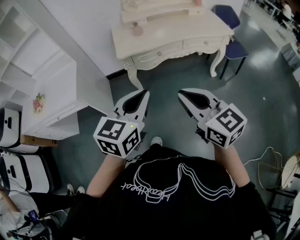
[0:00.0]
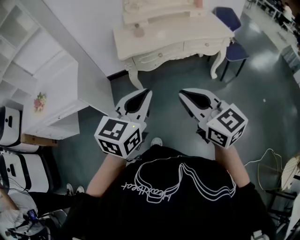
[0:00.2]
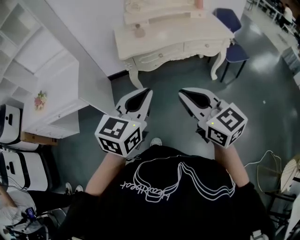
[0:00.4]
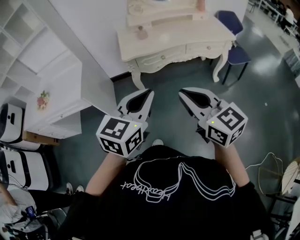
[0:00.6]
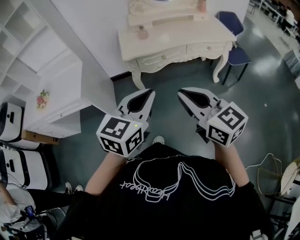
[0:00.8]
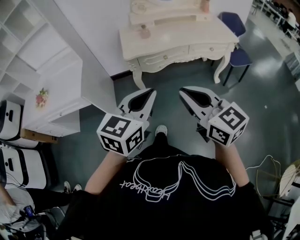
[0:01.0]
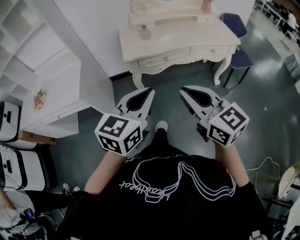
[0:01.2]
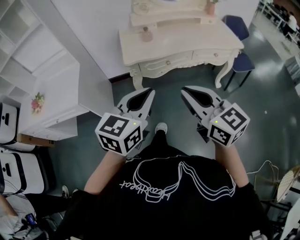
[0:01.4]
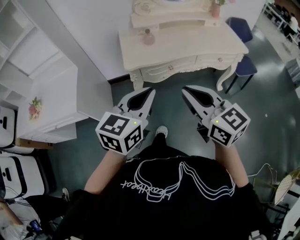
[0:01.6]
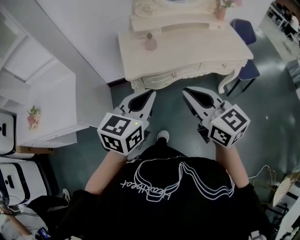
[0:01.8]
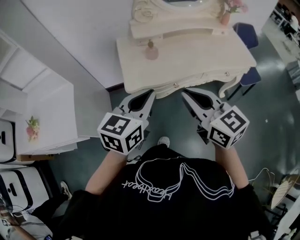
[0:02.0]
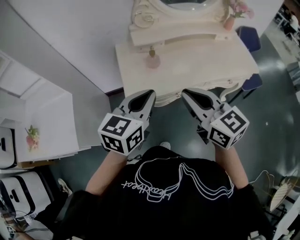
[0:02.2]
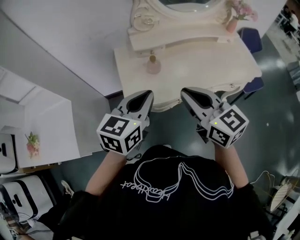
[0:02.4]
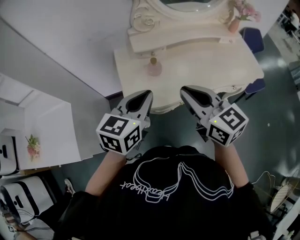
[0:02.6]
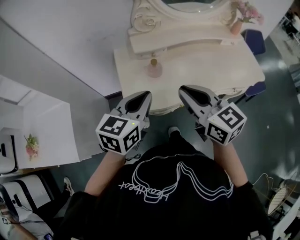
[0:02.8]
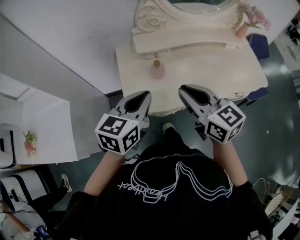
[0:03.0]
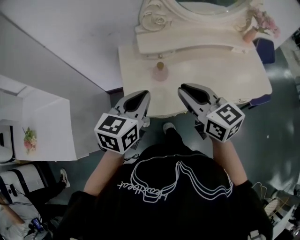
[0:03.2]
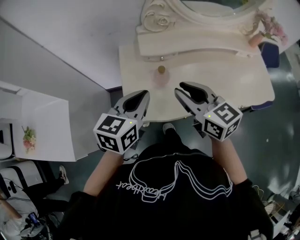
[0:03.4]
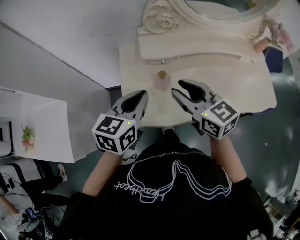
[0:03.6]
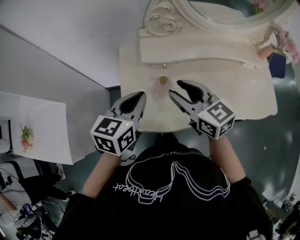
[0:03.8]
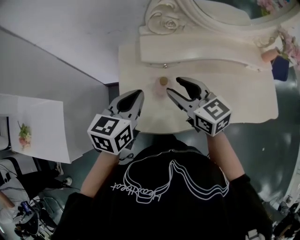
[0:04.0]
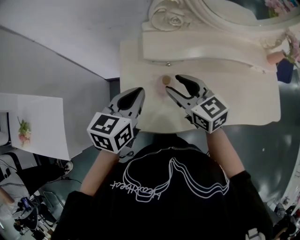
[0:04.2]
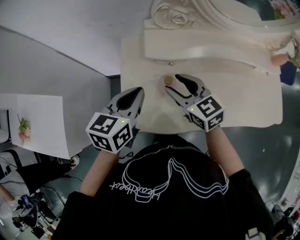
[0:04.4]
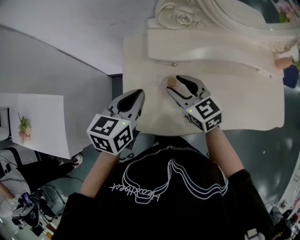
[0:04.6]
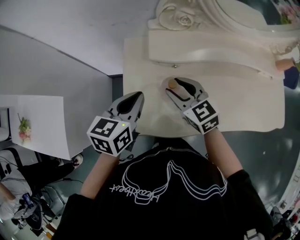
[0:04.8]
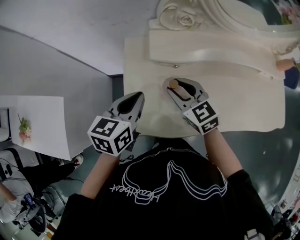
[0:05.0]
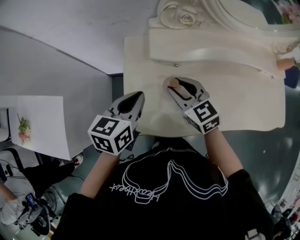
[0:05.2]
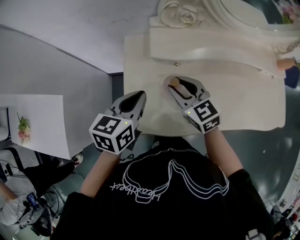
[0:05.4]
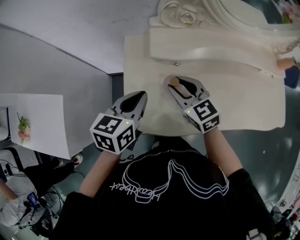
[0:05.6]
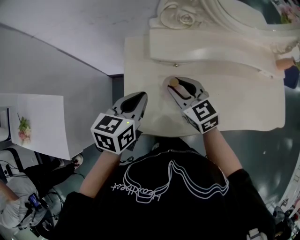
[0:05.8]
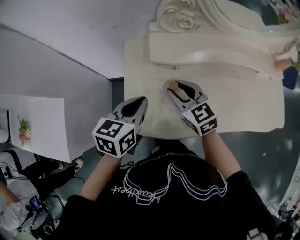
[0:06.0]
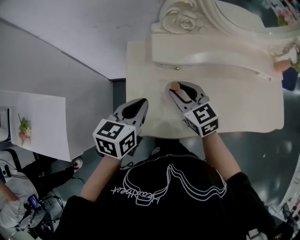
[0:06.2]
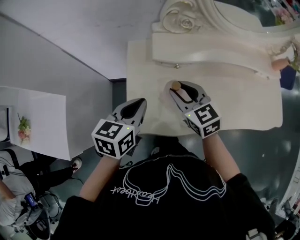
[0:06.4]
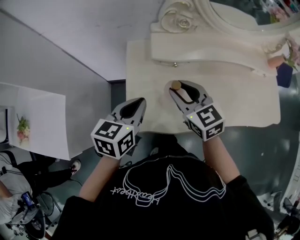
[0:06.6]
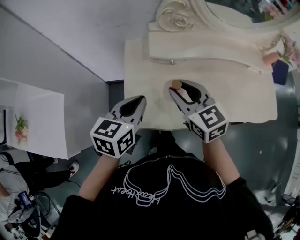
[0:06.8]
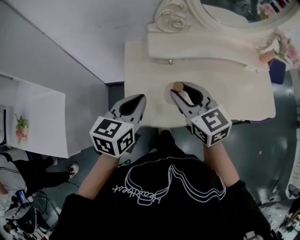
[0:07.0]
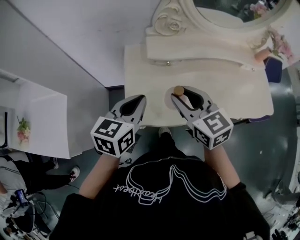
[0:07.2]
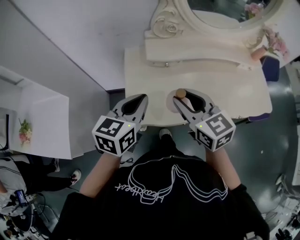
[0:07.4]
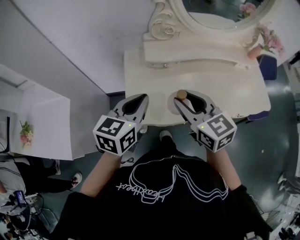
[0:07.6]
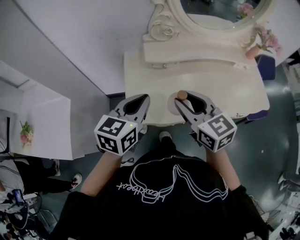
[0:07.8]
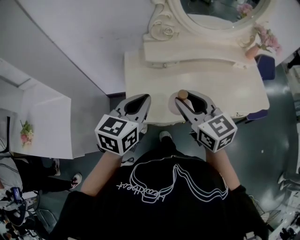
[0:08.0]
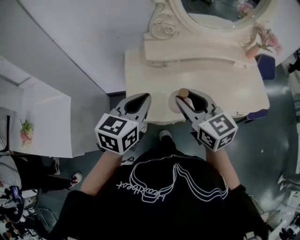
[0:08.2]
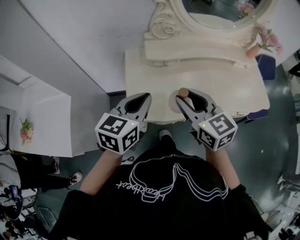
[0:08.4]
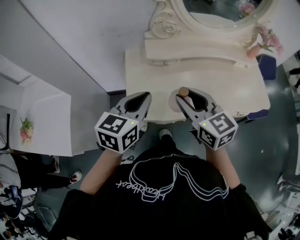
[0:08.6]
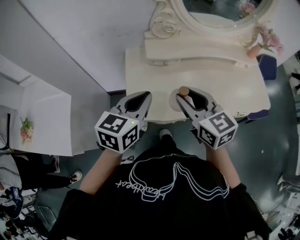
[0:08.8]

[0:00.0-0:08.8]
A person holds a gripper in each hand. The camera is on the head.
0:00.0 to 0:01.4: The two grippers go about 10 cm forward.
0:01.4 to 0:03.0: Both grippers are carried forward, some 40 cm.
0:03.0 to 0:04.4: Both grippers travel together forward and downward, some 20 cm. The right gripper opens its fingers.
0:04.4 to 0:05.8: There are only small adjustments of the grippers.
0:05.8 to 0:07.4: The right gripper moves upward and backward, some 20 cm. Meanwhile the left gripper heads upward and backward, covering some 10 cm.
0:07.4 to 0:08.8: The grippers make only small movements.

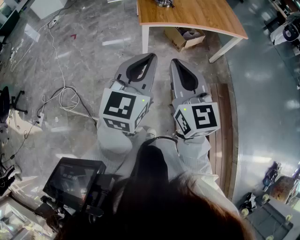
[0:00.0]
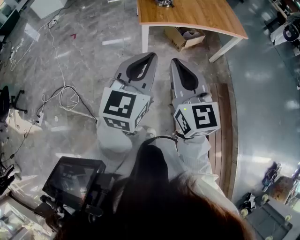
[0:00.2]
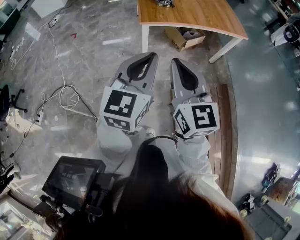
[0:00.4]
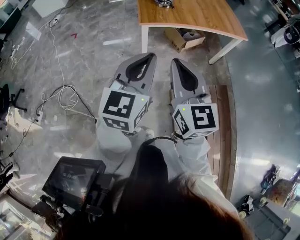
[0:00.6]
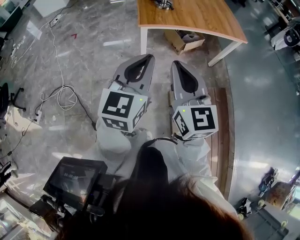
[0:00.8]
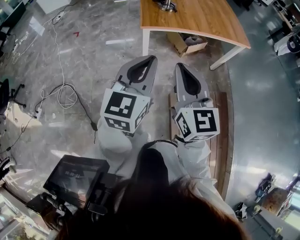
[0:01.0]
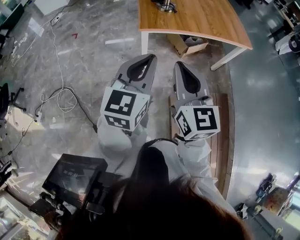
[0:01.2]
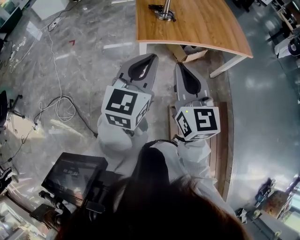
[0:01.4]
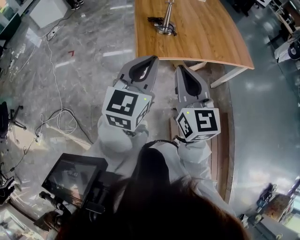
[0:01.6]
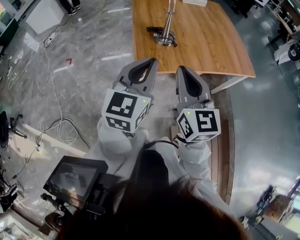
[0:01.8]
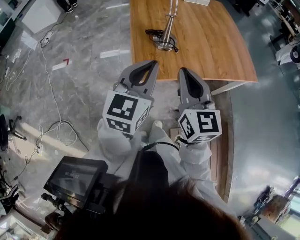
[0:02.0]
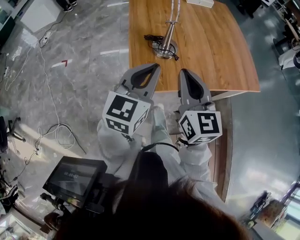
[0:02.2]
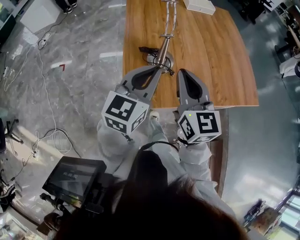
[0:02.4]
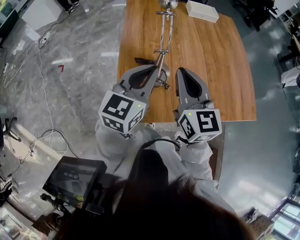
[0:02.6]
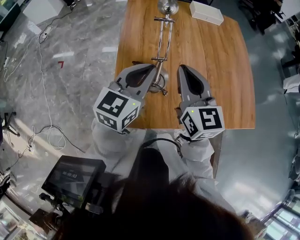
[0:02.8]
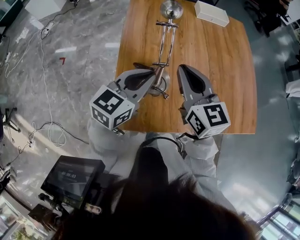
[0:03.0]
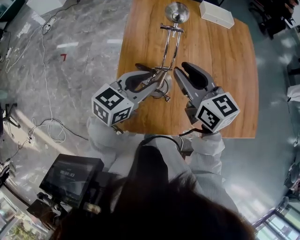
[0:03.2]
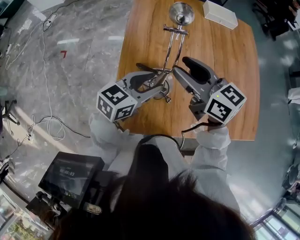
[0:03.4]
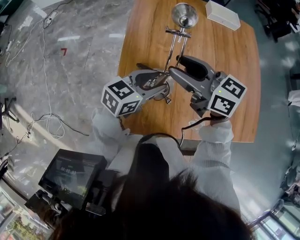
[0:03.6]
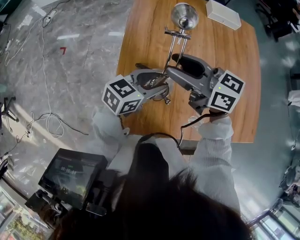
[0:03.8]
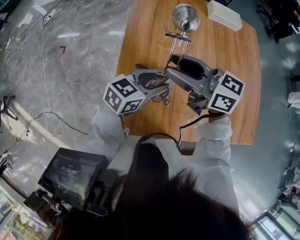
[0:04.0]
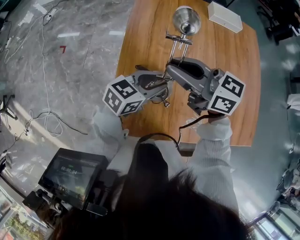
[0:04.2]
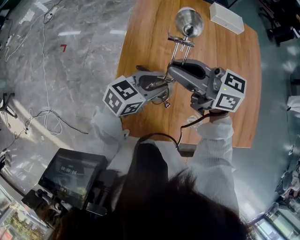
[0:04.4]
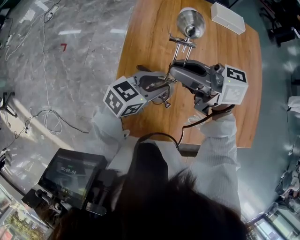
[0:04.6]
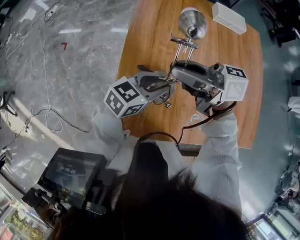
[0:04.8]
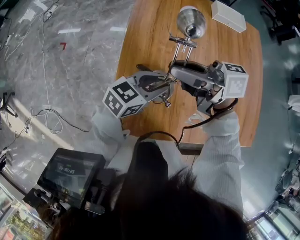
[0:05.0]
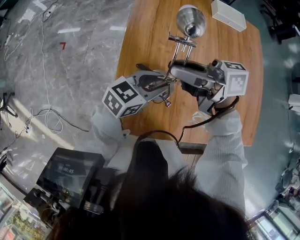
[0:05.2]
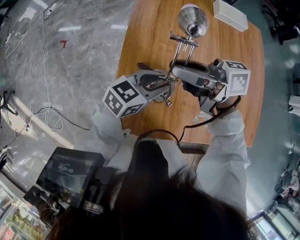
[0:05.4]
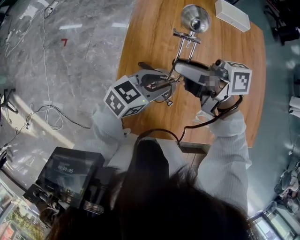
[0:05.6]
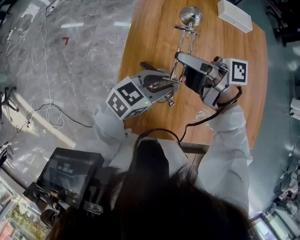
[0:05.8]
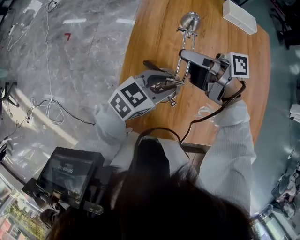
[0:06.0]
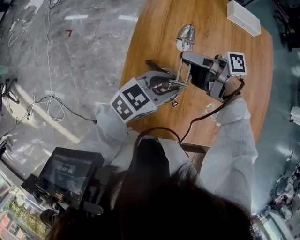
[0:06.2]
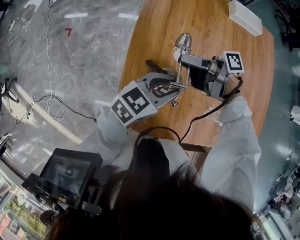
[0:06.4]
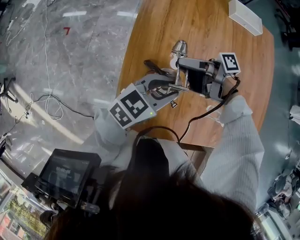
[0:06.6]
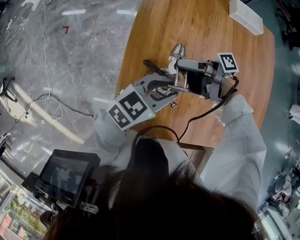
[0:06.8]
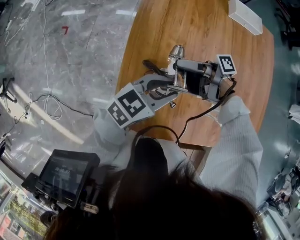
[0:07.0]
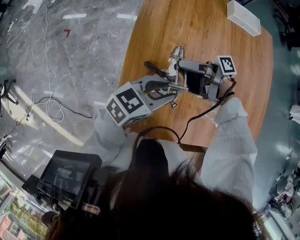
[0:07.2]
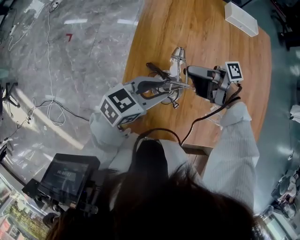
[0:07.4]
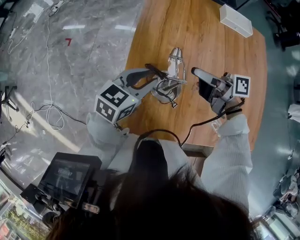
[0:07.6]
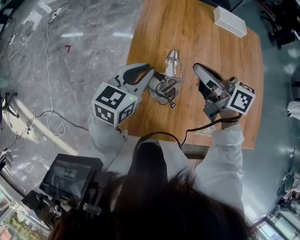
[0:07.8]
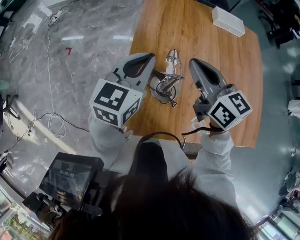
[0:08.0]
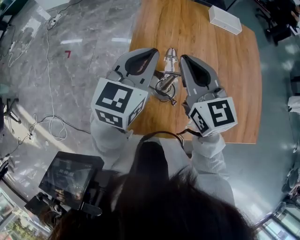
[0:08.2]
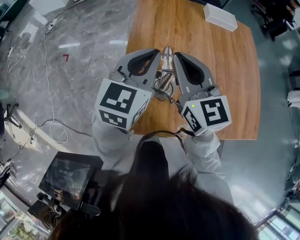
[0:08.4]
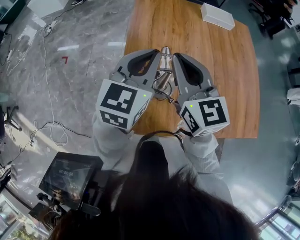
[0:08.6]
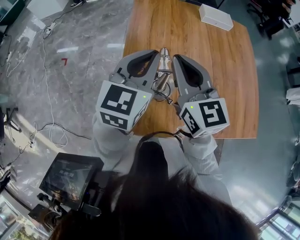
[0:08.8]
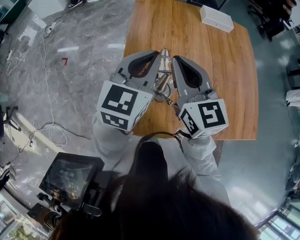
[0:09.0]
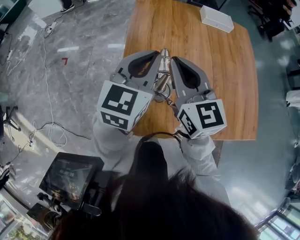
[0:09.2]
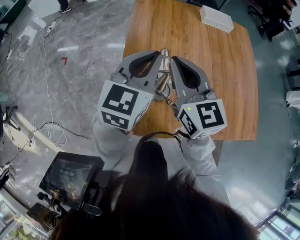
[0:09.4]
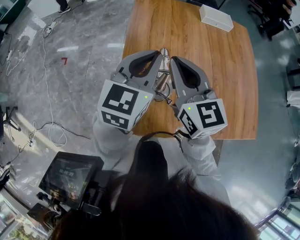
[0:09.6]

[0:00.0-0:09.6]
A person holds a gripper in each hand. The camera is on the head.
0:00.0 to 0:01.6: Both grippers travel together forward, about 30 cm.
0:01.6 to 0:03.2: The two grippers travel together, forward, roughly 60 cm. The right gripper swivels approximately 30 degrees, and opens. The left gripper turns by approximately 20 degrees, and opens its fingers.
0:03.2 to 0:04.8: The left gripper is displaced downward by approximately 5 cm. The right gripper moves about 5 cm, and rotates roughly 50 degrees.
0:04.8 to 0:06.4: The right gripper moves downward, about 15 cm, and twists roughly 40 degrees clockwise, seen from behind.
0:06.4 to 0:08.0: Both grippers move upward, approximately 15 cm. The right gripper rotates around the line of its fingers by roughly 70 degrees, counterclockwise from behind, while the left gripper rotates approximately 30 degrees, and closes.
0:08.0 to 0:09.6: The left gripper changes place by some 5 cm. Meanwhile the right gripper changes place by about 5 cm.

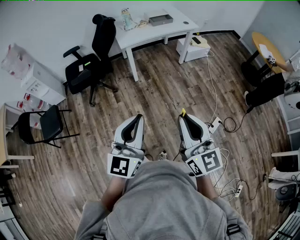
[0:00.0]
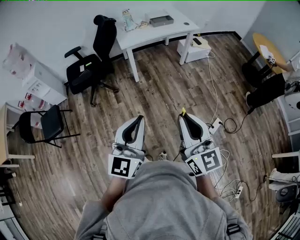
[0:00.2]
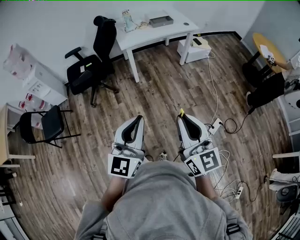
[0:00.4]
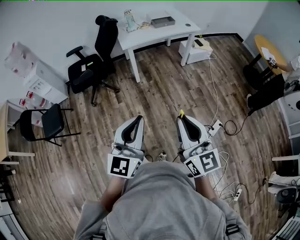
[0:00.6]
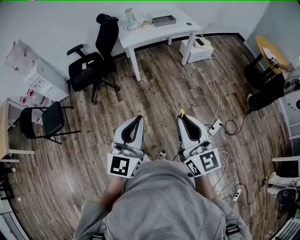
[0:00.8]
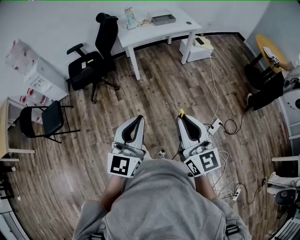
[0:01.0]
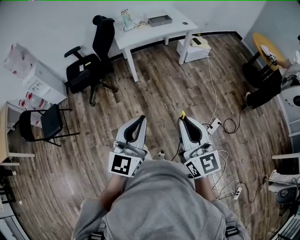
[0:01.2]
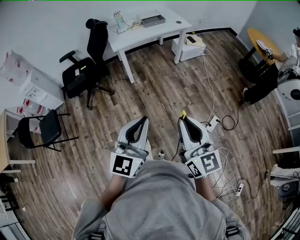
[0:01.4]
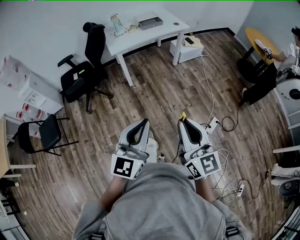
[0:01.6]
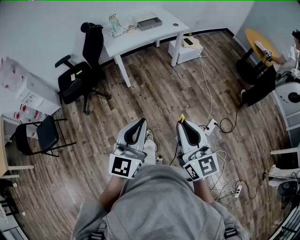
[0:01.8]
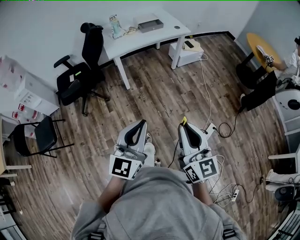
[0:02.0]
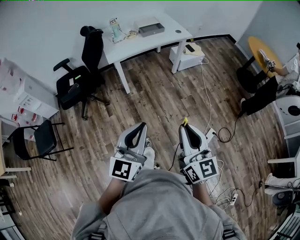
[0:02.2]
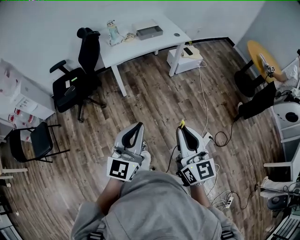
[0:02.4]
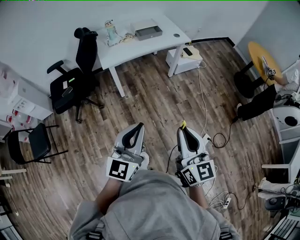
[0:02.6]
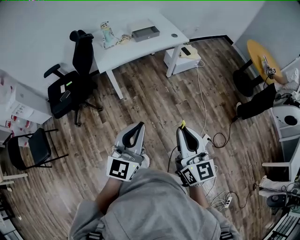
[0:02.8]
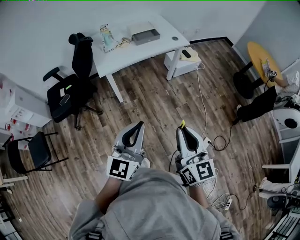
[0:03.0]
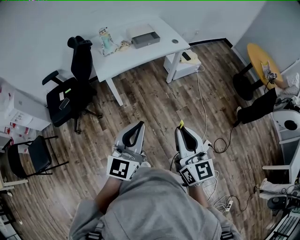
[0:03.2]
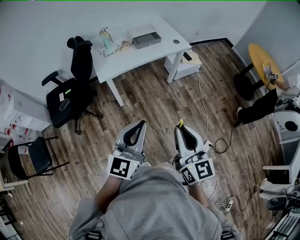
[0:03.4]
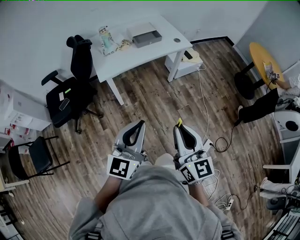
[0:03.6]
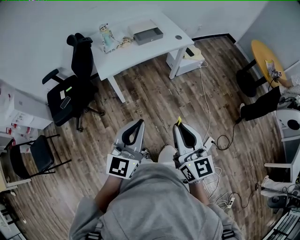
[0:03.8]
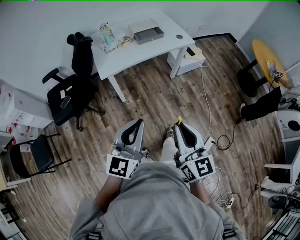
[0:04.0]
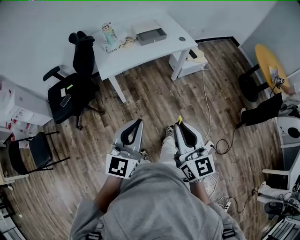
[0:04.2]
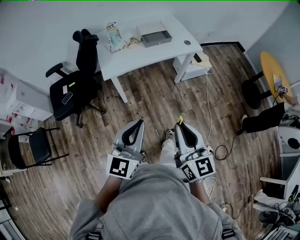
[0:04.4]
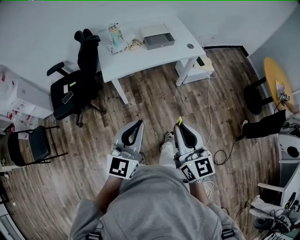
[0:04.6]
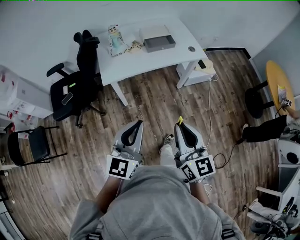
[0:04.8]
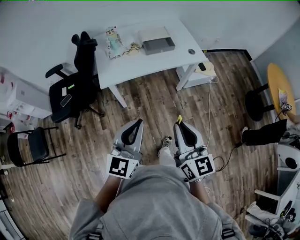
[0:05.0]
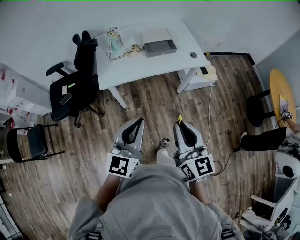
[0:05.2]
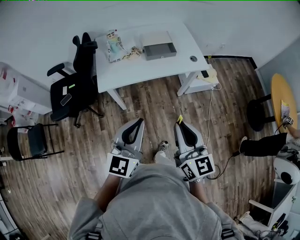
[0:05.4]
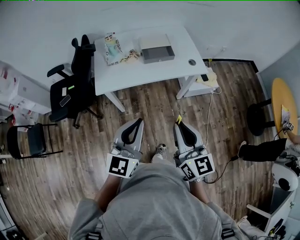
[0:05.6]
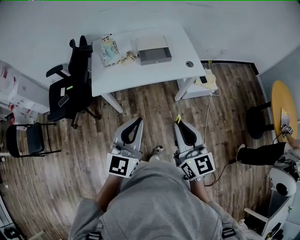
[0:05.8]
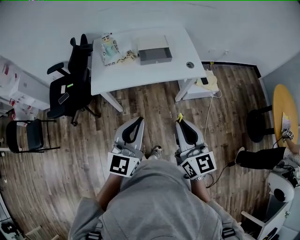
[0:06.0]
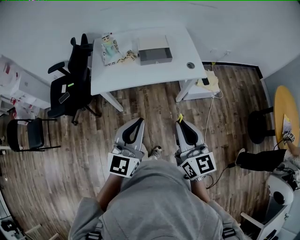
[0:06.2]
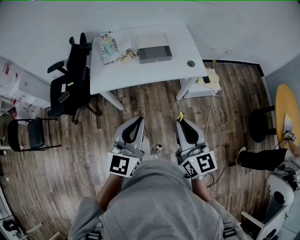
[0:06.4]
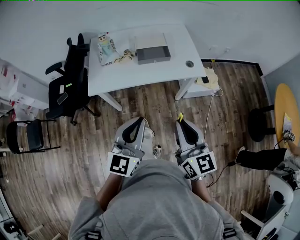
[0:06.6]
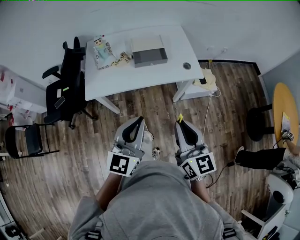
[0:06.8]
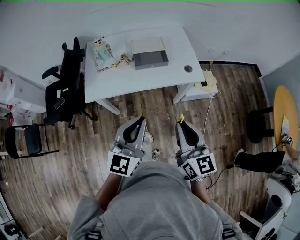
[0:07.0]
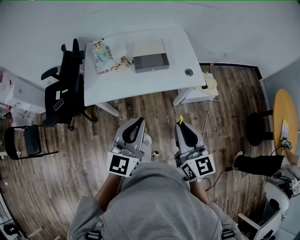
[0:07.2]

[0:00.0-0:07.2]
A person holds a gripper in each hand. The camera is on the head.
0:00.0 to 0:01.4: Both grippers move to the right, roughly 5 cm.
0:01.4 to 0:02.8: The grippers both shift forward by about 25 cm.
0:02.8 to 0:04.4: The two grippers go some 15 cm forward.
0:04.4 to 0:05.8: Both grippers move forward and to the right, approximately 25 cm.
0:05.8 to 0:07.2: Both grippers travel together forward and to the right, some 10 cm.
